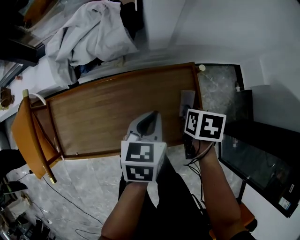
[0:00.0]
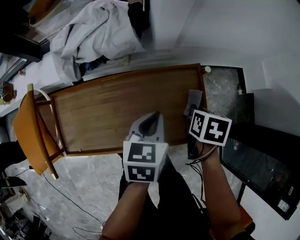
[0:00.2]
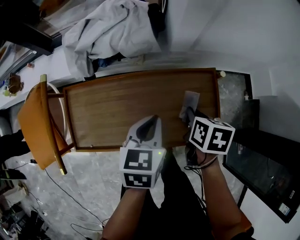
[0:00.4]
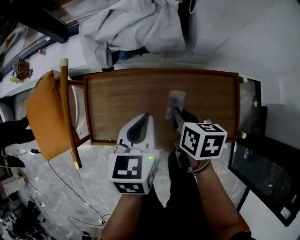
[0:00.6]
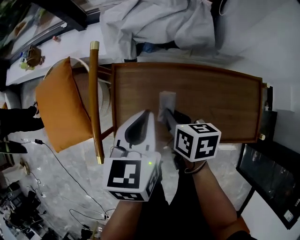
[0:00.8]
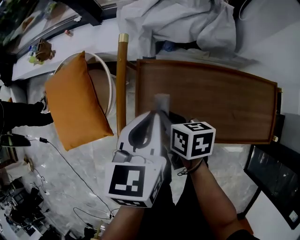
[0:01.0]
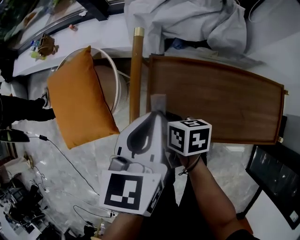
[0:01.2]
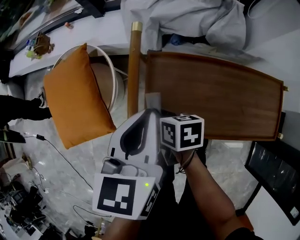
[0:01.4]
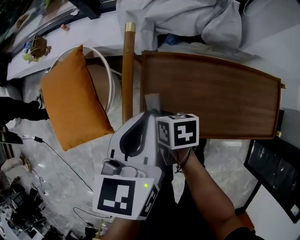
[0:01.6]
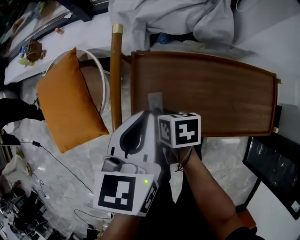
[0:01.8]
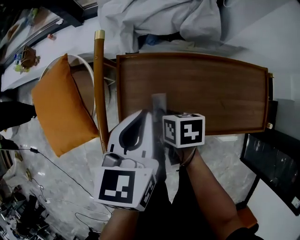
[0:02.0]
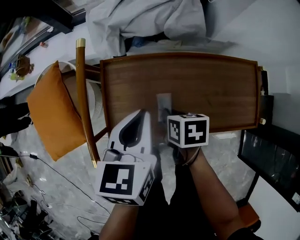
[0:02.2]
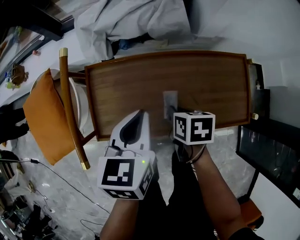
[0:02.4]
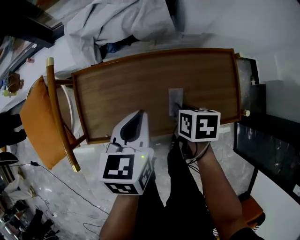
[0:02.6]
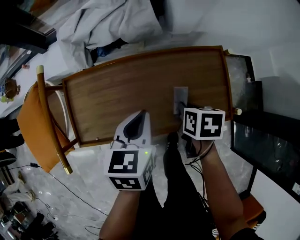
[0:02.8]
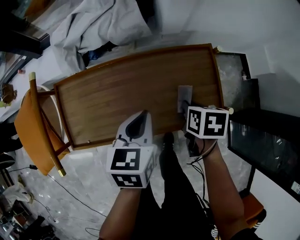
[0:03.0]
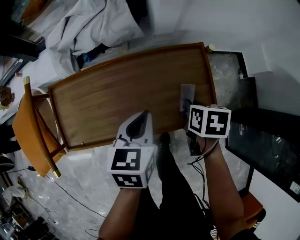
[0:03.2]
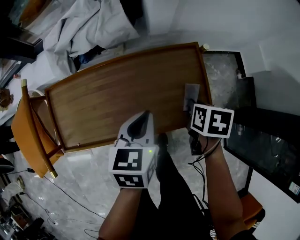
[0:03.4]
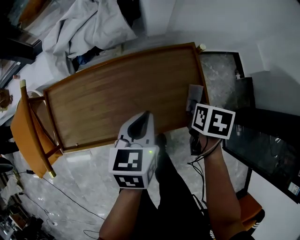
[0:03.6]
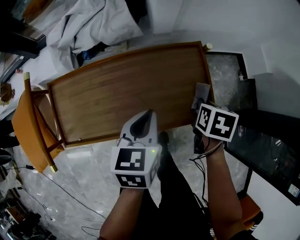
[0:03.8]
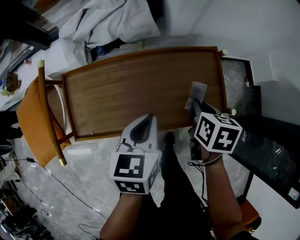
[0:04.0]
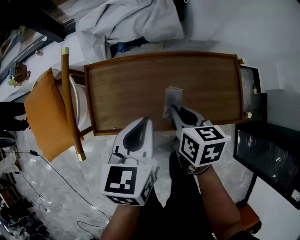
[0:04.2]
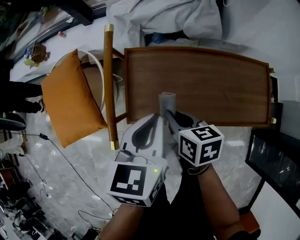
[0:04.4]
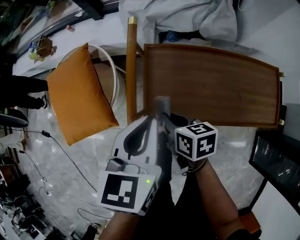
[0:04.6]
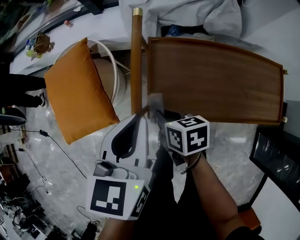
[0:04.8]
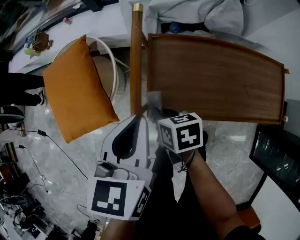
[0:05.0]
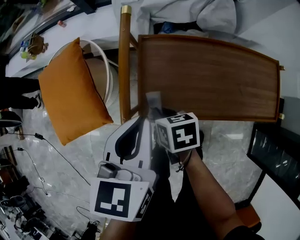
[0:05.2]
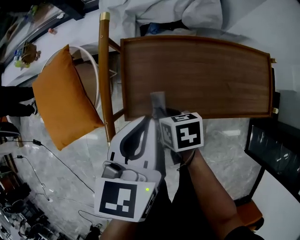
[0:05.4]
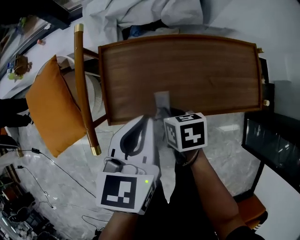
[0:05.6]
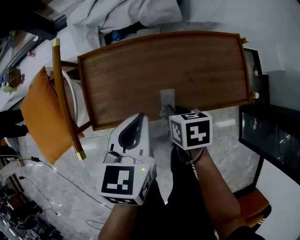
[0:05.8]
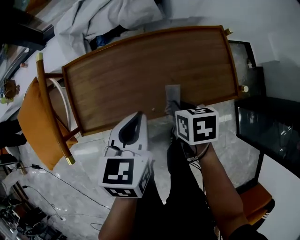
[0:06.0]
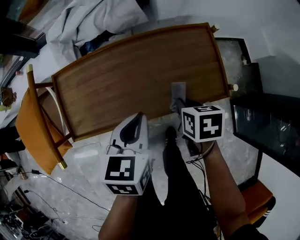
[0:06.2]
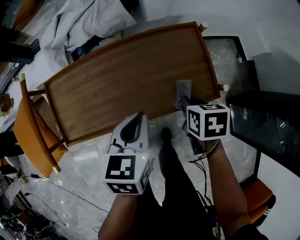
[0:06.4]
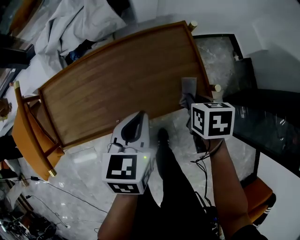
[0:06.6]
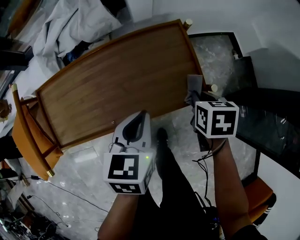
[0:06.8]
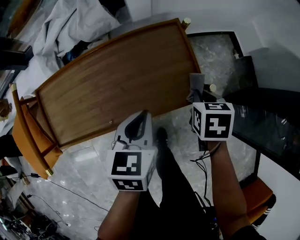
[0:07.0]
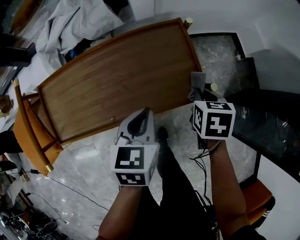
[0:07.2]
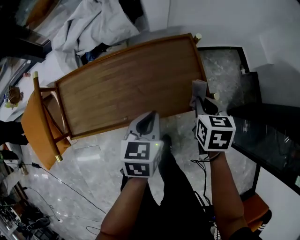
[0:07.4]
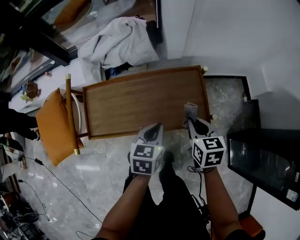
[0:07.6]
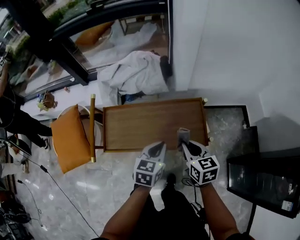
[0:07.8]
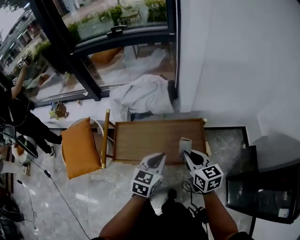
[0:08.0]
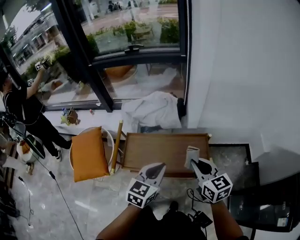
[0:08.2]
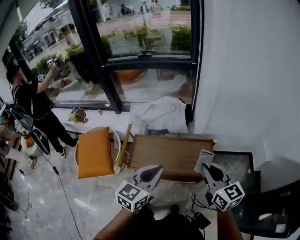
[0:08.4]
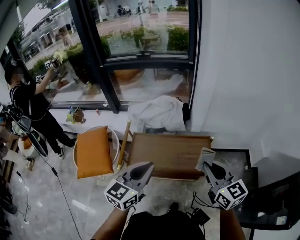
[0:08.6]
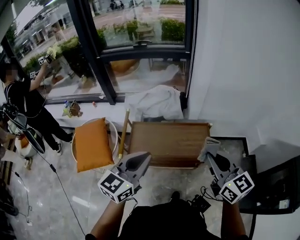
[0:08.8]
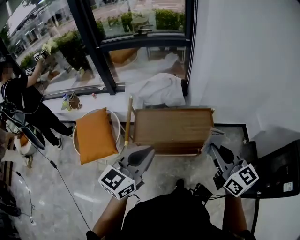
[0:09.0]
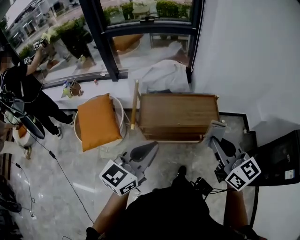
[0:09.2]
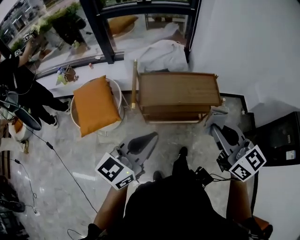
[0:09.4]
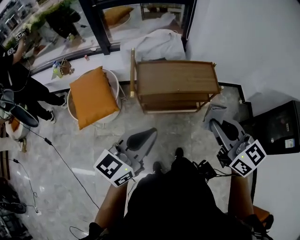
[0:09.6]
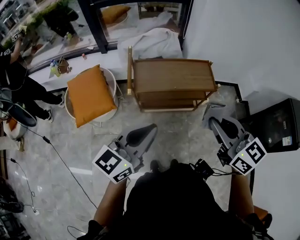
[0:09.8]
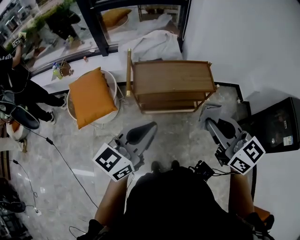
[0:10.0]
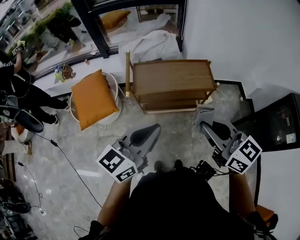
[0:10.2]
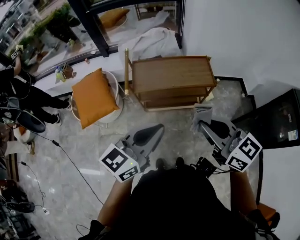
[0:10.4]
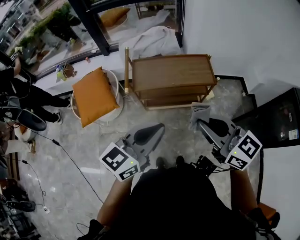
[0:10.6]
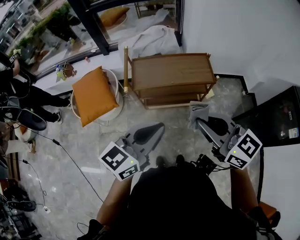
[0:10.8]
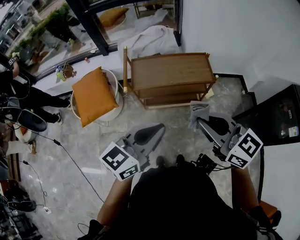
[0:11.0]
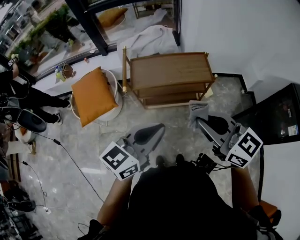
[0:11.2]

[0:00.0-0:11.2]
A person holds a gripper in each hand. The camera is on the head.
0:00.0 to 0:01.6: The two grippers travel together, approximately 50 cm. The left gripper rotates some 20 degrees, while the right gripper changes its angle by approximately 30 degrees.
0:01.6 to 0:03.2: The right gripper shifts by roughly 50 cm, and swivels about 30 degrees. The left gripper shifts by roughly 35 cm, and rotates some 20 degrees.
0:03.2 to 0:04.8: The right gripper changes place by about 50 cm, and swivels some 40 degrees. Meanwhile the left gripper ends up about 40 cm from where it was.
0:04.8 to 0:06.4: The left gripper ends up roughly 35 cm from where it was, and swivels approximately 20 degrees; the right gripper ends up some 50 cm from where it was, and changes its angle by some 30 degrees.
0:06.4 to 0:08.0: The two grippers go roughly 25 cm upward. The right gripper tilts its fingers about 40 degrees upward.
0:08.0 to 0:09.6: The left gripper goes roughly 40 cm backward, to the left and upward, and turns by about 30 degrees; the right gripper is displaced backward, upward and to the left by about 40 cm.
0:09.6 to 0:11.2: The right gripper shifts by some 5 cm, while the left gripper moves to the right, roughly 10 cm.

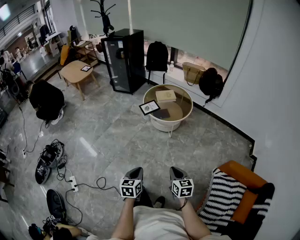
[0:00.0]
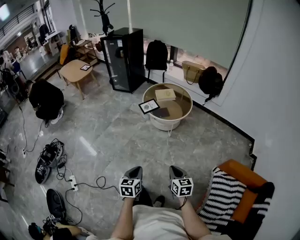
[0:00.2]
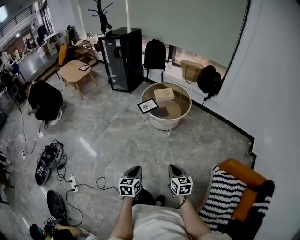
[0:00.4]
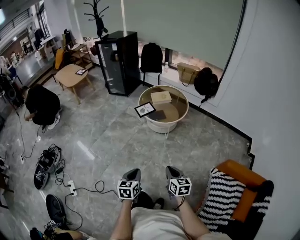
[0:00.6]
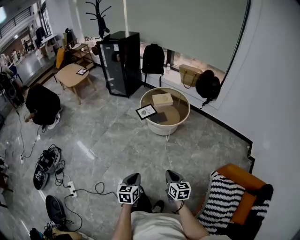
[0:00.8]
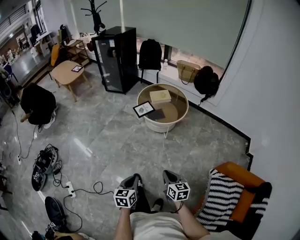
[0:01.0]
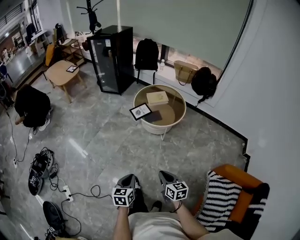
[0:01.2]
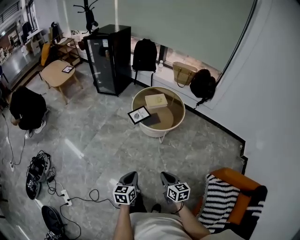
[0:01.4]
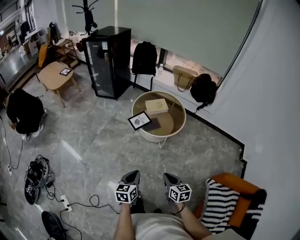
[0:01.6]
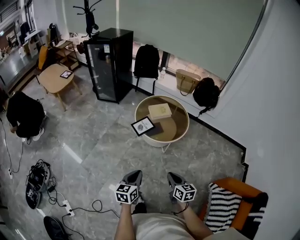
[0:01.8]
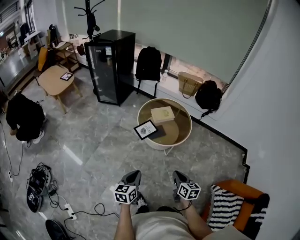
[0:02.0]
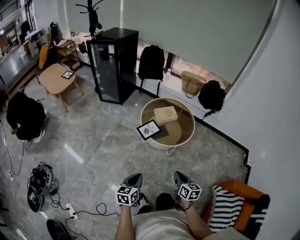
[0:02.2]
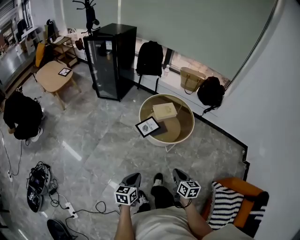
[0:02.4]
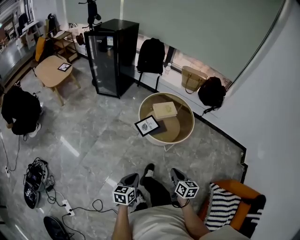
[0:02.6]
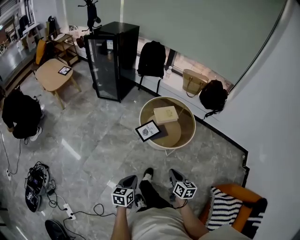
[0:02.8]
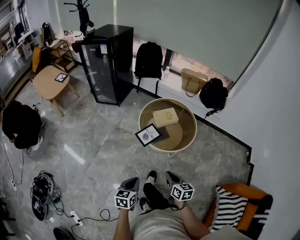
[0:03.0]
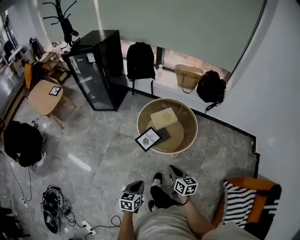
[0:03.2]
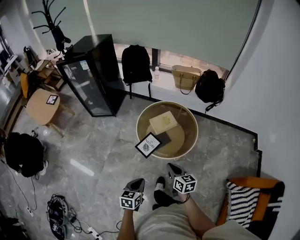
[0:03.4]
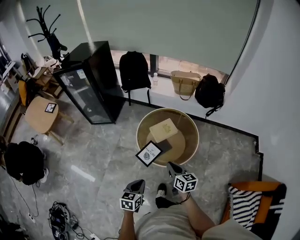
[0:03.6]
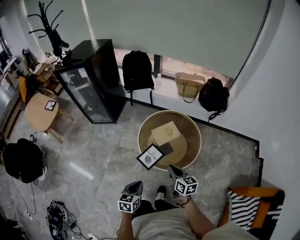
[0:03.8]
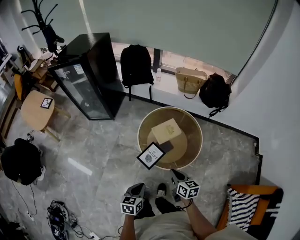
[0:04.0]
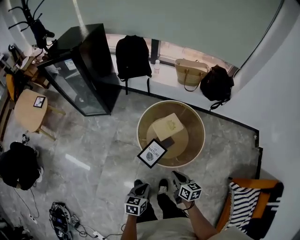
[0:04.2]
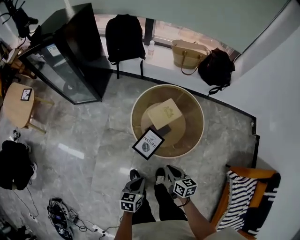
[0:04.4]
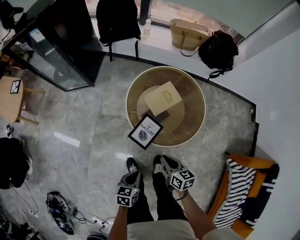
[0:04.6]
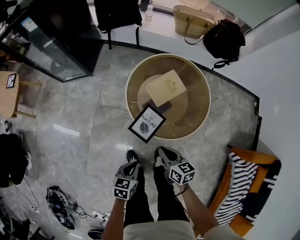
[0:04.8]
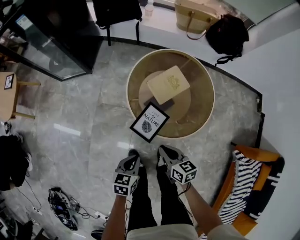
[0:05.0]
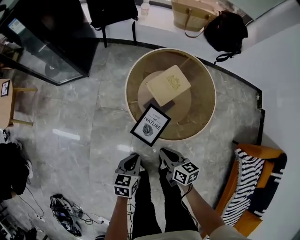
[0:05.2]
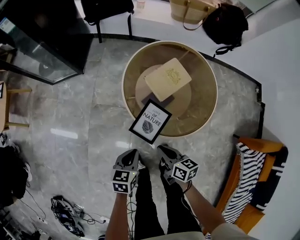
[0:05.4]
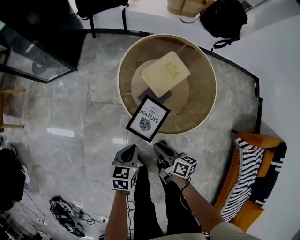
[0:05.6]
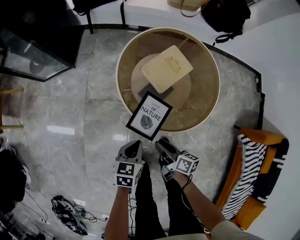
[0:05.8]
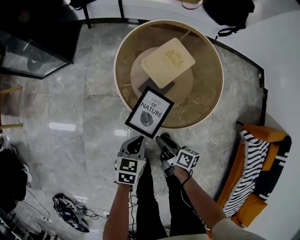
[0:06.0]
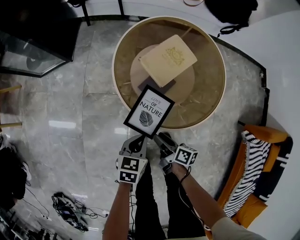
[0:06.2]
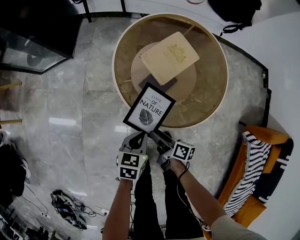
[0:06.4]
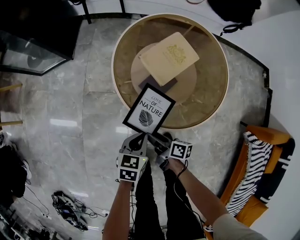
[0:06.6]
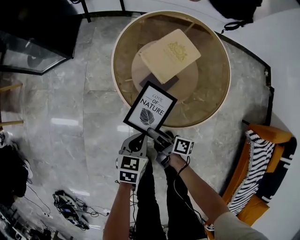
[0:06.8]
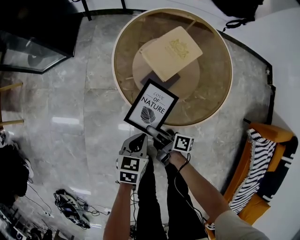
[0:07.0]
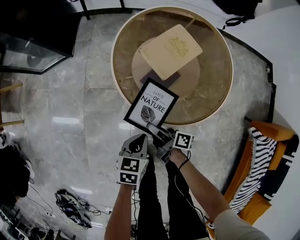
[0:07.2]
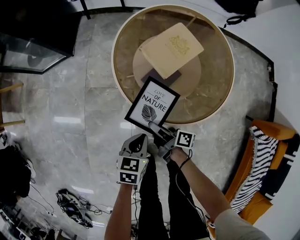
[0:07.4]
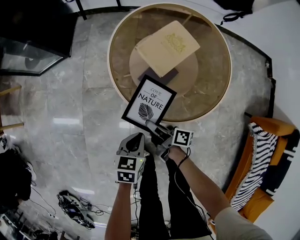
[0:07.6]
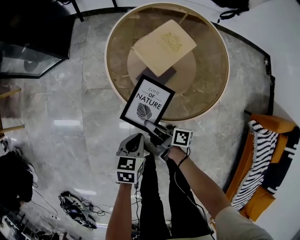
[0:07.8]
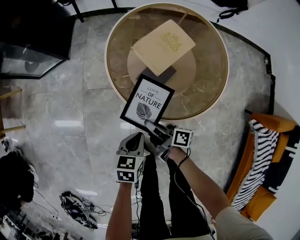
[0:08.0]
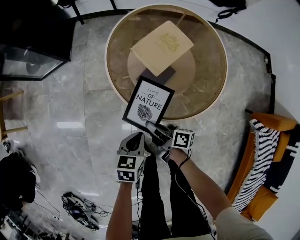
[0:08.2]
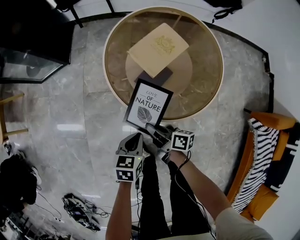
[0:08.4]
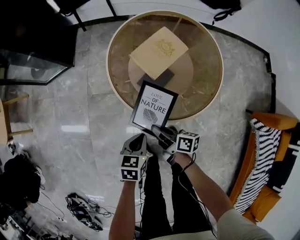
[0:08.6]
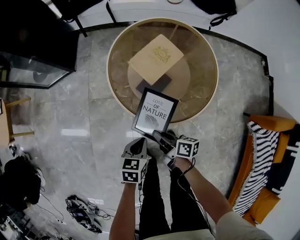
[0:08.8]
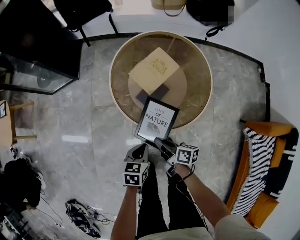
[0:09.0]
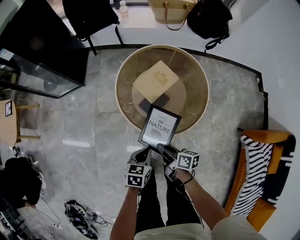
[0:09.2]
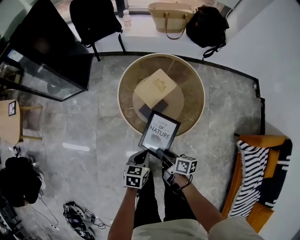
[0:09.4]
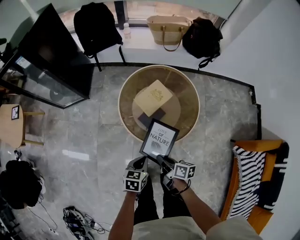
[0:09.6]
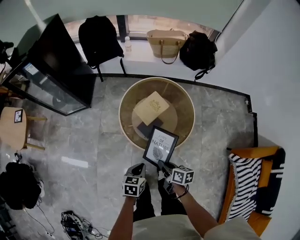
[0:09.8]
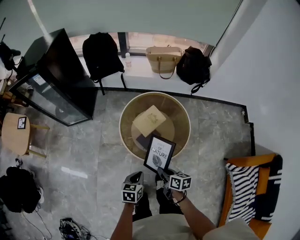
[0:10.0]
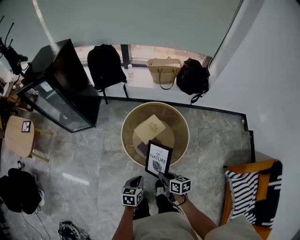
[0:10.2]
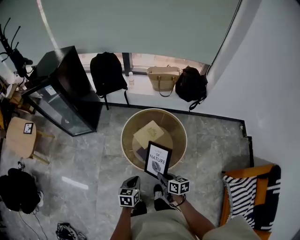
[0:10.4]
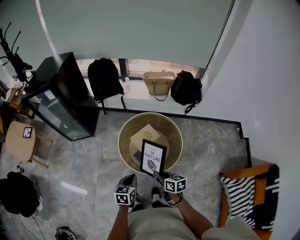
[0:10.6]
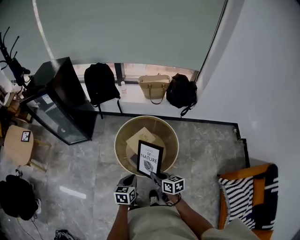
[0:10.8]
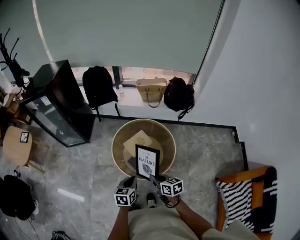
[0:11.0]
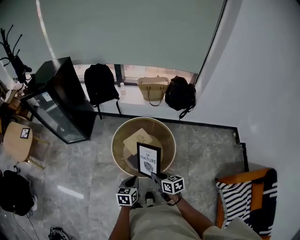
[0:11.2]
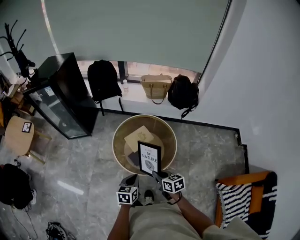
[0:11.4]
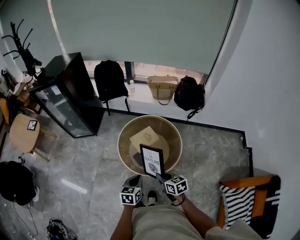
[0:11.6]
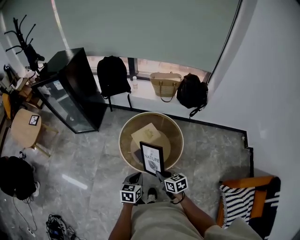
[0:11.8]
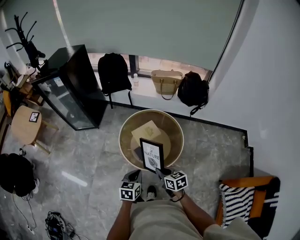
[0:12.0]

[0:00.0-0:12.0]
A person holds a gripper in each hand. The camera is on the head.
0:00.0 to 0:01.6: Both grippers travel together forward, roughly 20 cm.
0:01.6 to 0:03.0: Both grippers travel together forward and to the left, approximately 20 cm.
0:03.0 to 0:04.4: The two grippers go about 30 cm forward and downward. The left gripper turns by approximately 20 degrees.
0:04.4 to 0:06.0: The right gripper moves downward, some 25 cm, changes its angle by approximately 40 degrees, and opens its fingers. Meanwhile the left gripper moves downward and forward, roughly 25 cm.
0:06.0 to 0:07.6: The right gripper changes place by approximately 10 cm, changes its angle by roughly 20 degrees, and closes up, while the left gripper moves downward, some 5 cm.
0:07.6 to 0:09.0: The left gripper heads upward, covering roughly 10 cm, while the right gripper shifts roughly 15 cm upward and to the right.
0:09.0 to 0:10.4: The grippers both shift upward by about 30 cm. The right gripper rotates roughly 30 degrees.
0:10.4 to 0:12.0: Both grippers travel together to the right, about 5 cm. The right gripper turns by approximately 20 degrees.
